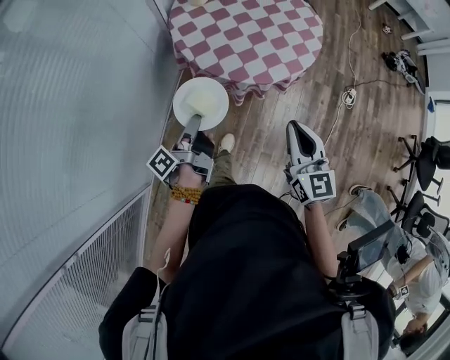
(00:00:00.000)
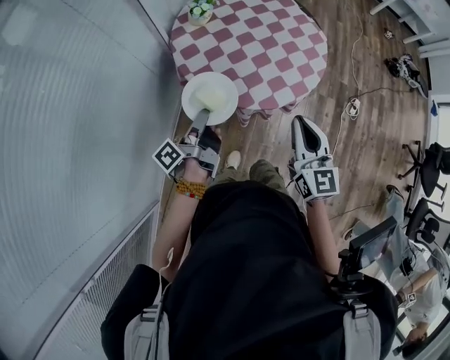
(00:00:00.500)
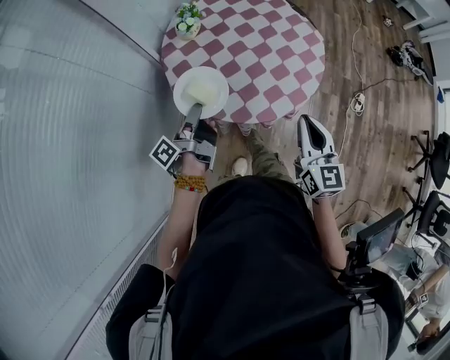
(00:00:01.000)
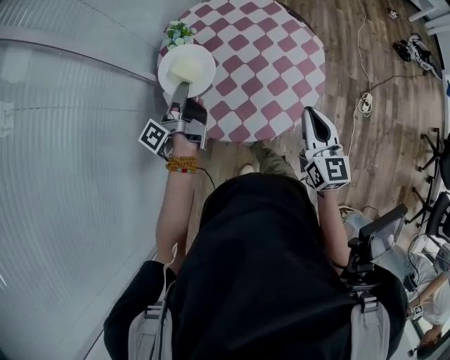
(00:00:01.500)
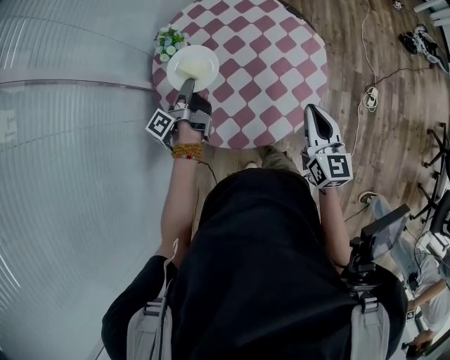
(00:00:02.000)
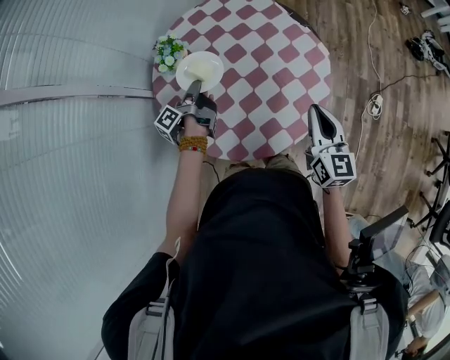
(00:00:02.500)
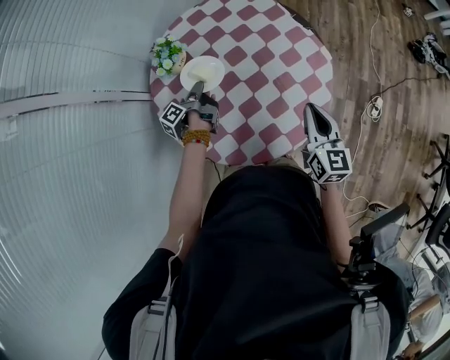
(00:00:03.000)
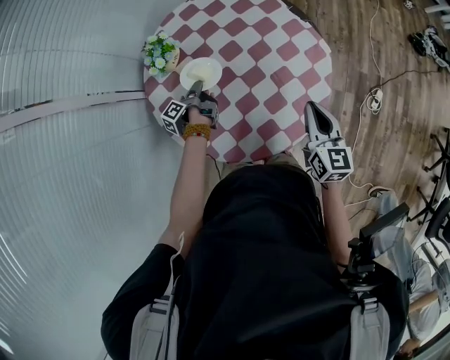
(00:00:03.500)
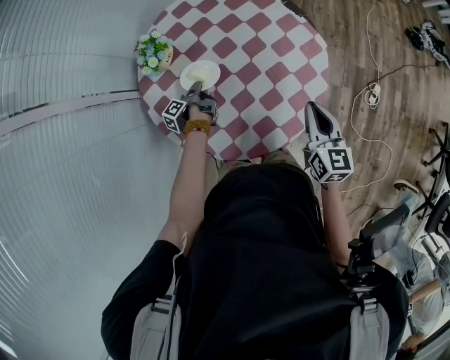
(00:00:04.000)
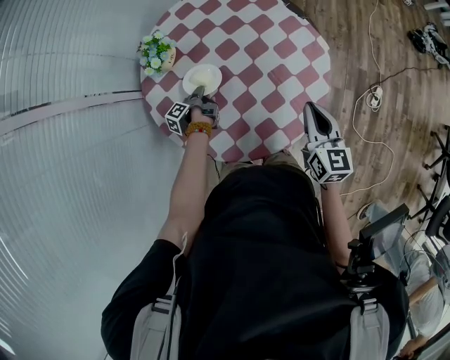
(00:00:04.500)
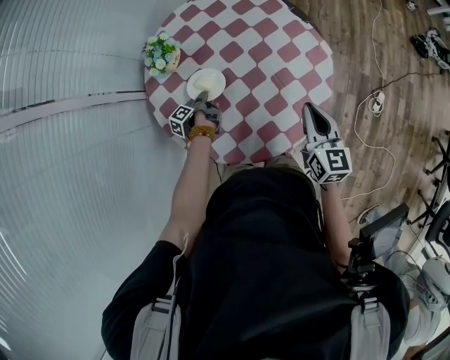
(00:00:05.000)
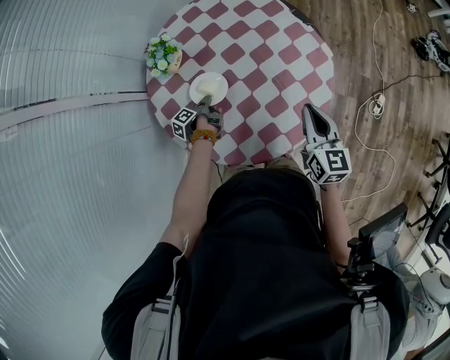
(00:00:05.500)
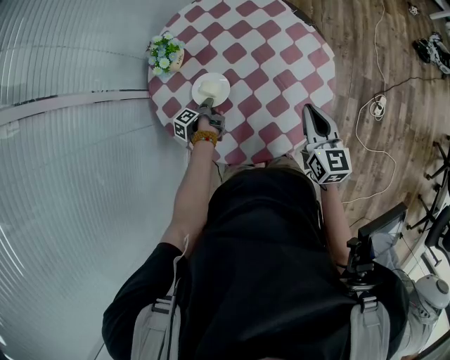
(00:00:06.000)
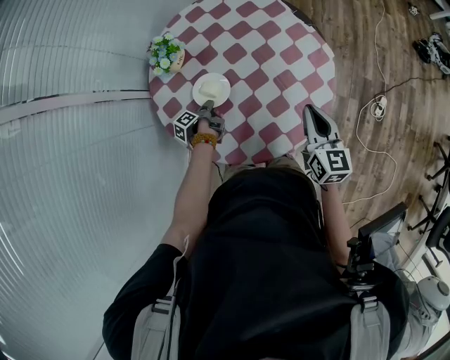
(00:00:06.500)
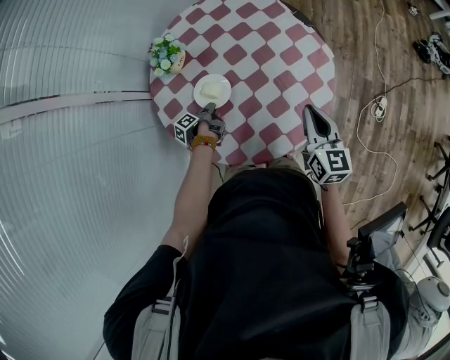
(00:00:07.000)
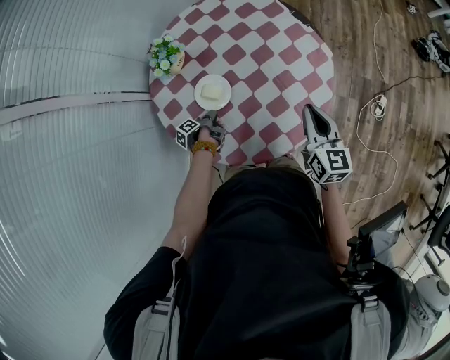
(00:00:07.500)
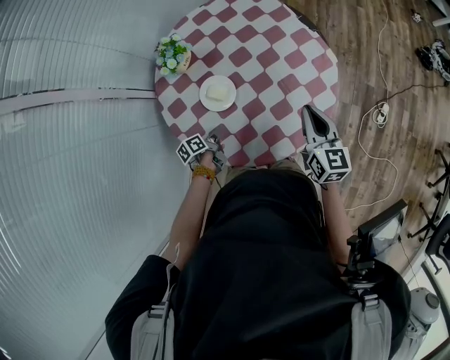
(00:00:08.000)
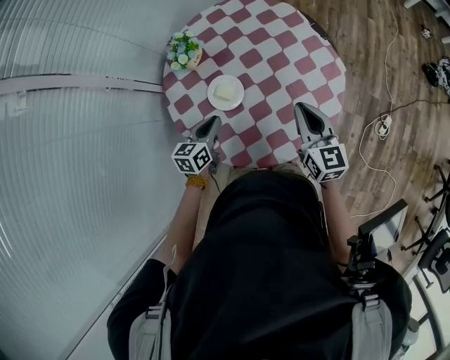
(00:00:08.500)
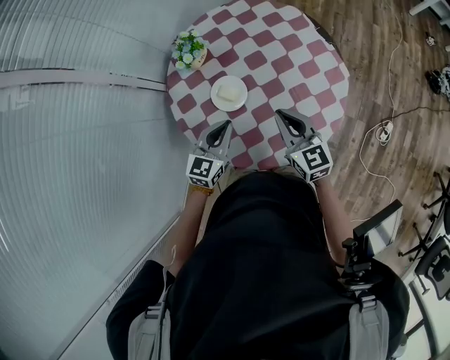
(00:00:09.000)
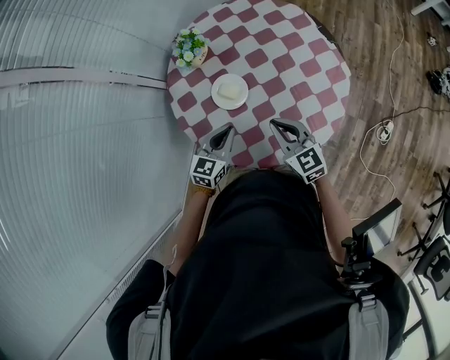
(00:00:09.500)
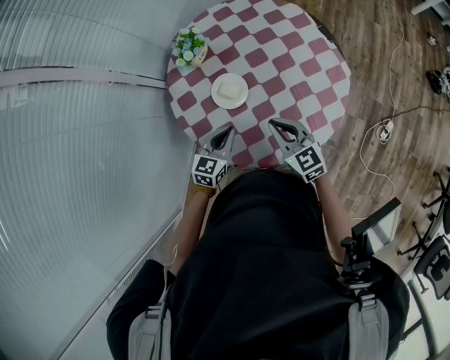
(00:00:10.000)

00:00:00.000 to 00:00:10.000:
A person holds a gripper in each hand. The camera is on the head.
00:00:00.000 to 00:00:02.000: The right gripper reaches some 10 cm upward, then returns.
00:00:02.000 to 00:00:04.000: The right gripper changes place by about 15 cm.
00:00:08.000 to 00:00:10.000: The right gripper changes place by approximately 15 cm, and turns by some 40 degrees.

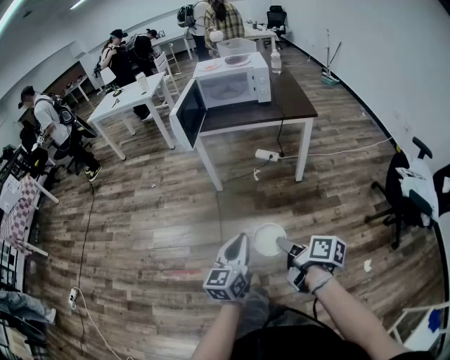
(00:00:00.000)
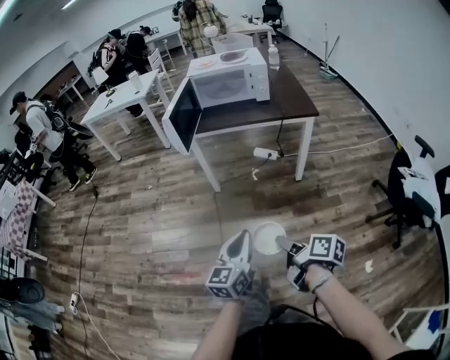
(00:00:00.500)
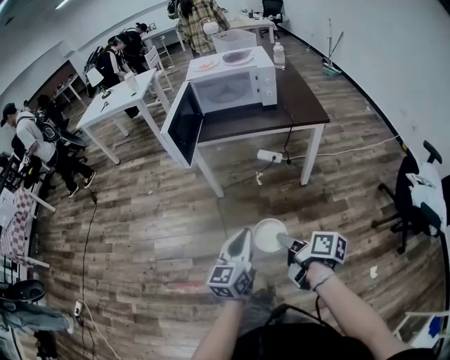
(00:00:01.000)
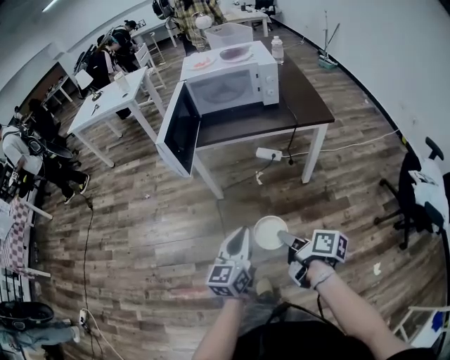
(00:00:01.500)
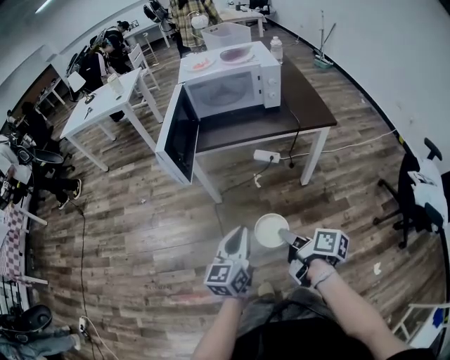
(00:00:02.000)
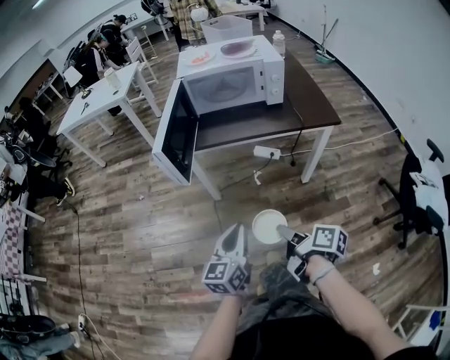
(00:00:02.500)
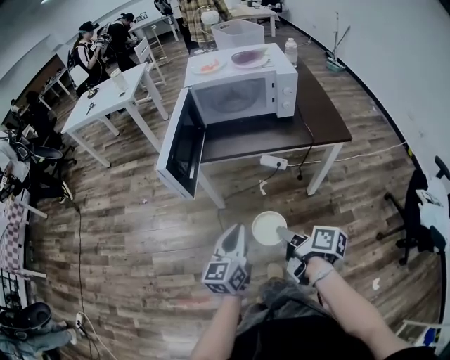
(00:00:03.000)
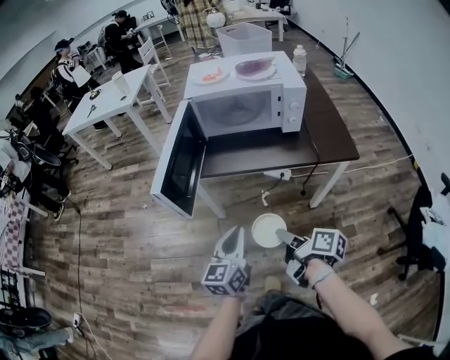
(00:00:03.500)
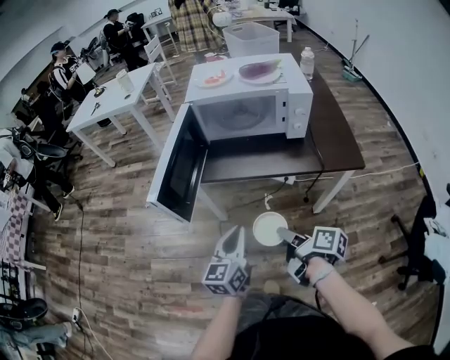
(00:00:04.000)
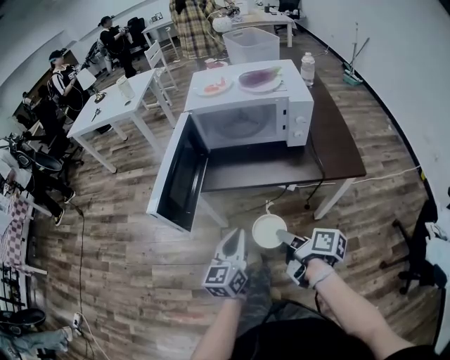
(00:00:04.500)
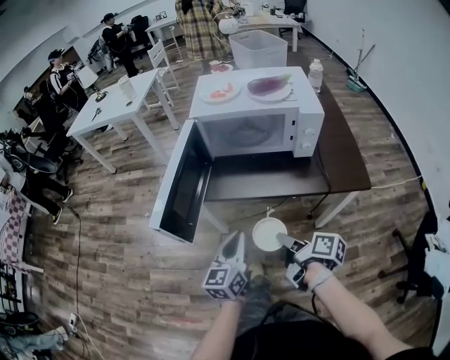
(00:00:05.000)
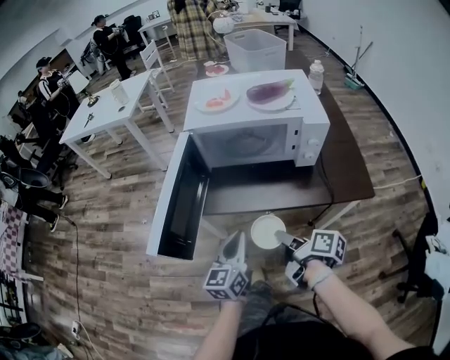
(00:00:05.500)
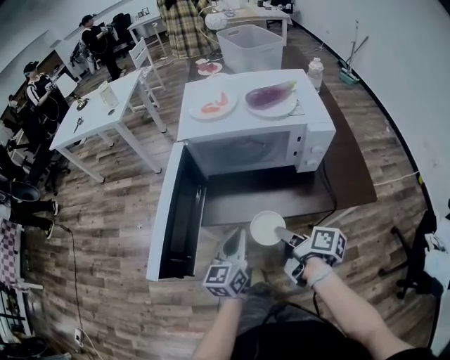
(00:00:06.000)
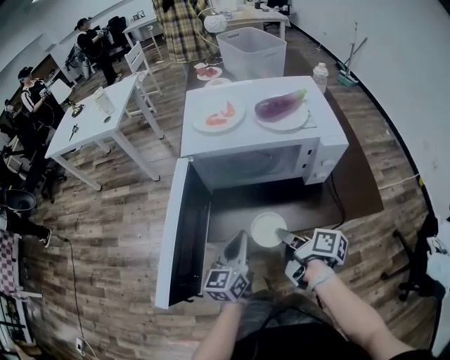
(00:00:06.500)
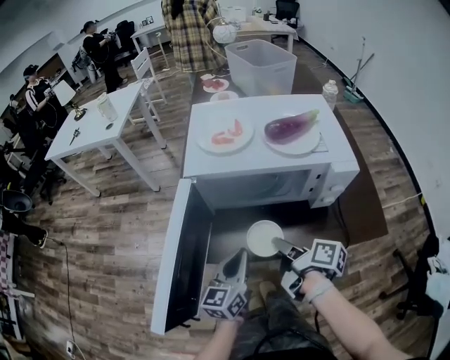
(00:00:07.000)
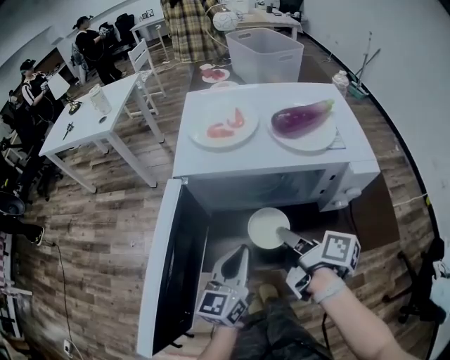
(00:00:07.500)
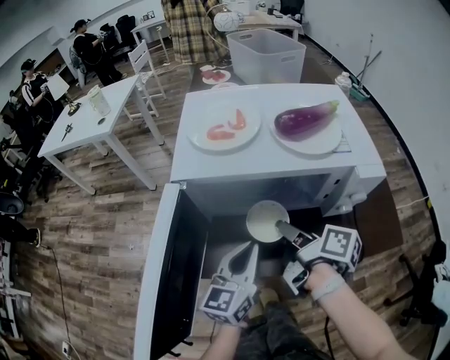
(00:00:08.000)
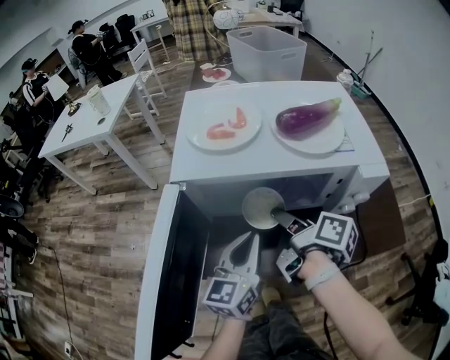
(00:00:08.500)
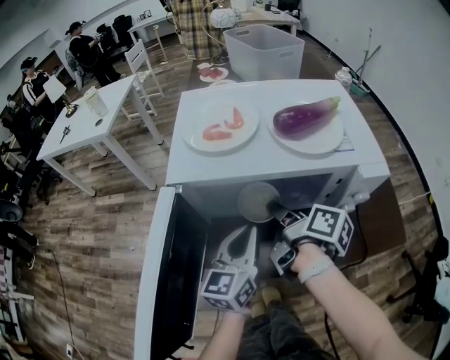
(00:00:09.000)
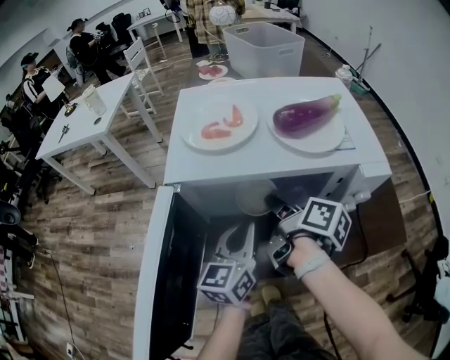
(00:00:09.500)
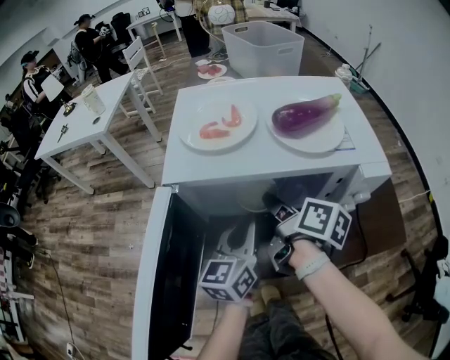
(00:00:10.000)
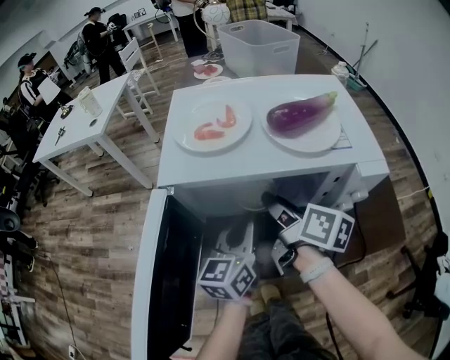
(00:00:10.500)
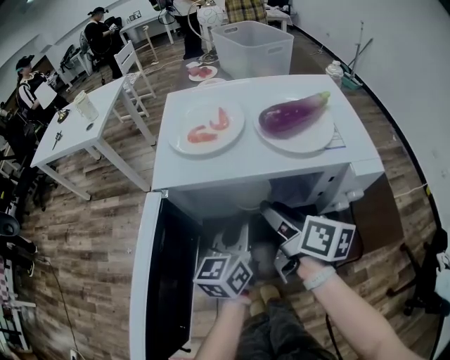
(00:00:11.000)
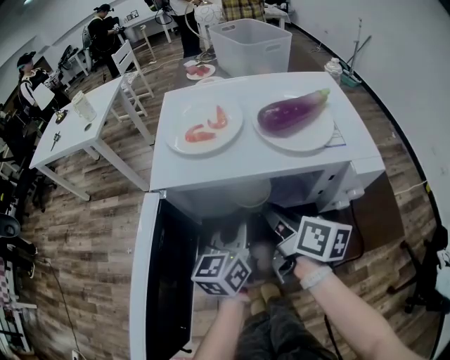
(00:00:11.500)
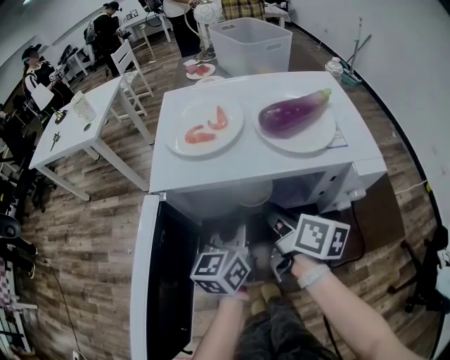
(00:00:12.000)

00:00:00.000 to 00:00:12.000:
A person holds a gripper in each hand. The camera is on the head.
00:00:00.000 to 00:00:02.000: The two grippers go roughly 30 cm forward.
00:00:02.000 to 00:00:04.000: The grippers both shift forward by roughly 20 cm.
00:00:04.000 to 00:00:06.000: Both grippers travel together forward, some 20 cm.
00:00:06.000 to 00:00:08.000: Both grippers move forward, roughly 15 cm.
00:00:08.000 to 00:00:10.000: Both grippers travel together forward, some 5 cm.
00:00:10.000 to 00:00:12.000: The right gripper closes.

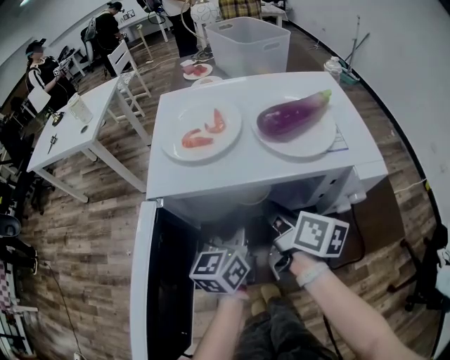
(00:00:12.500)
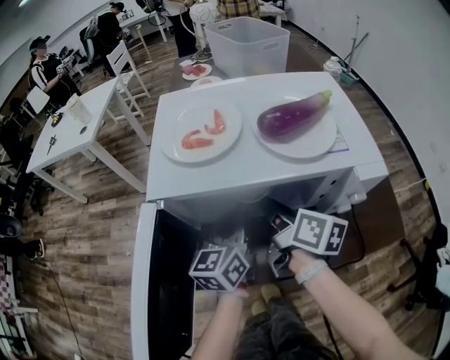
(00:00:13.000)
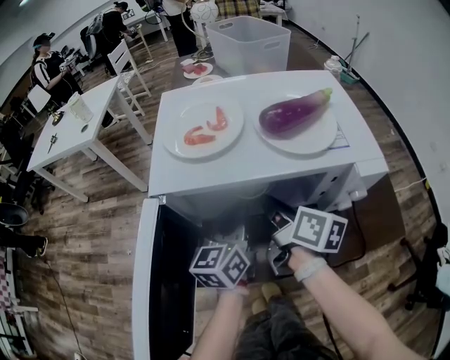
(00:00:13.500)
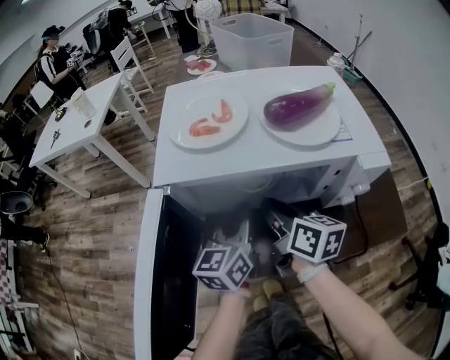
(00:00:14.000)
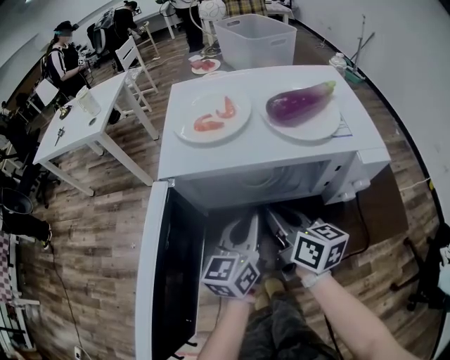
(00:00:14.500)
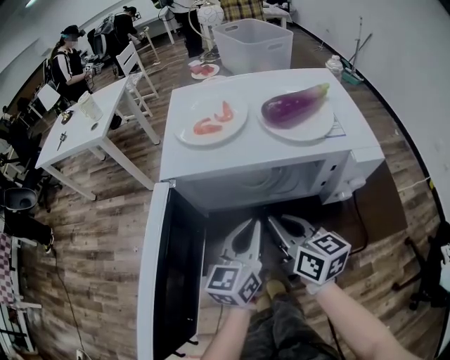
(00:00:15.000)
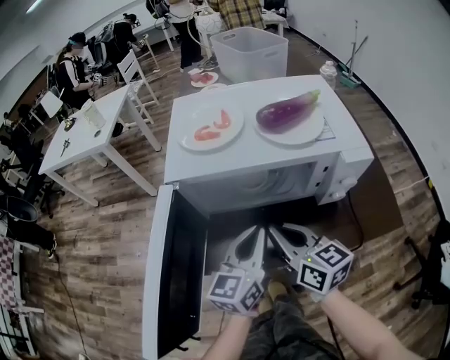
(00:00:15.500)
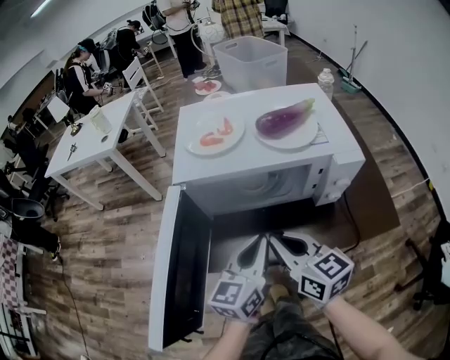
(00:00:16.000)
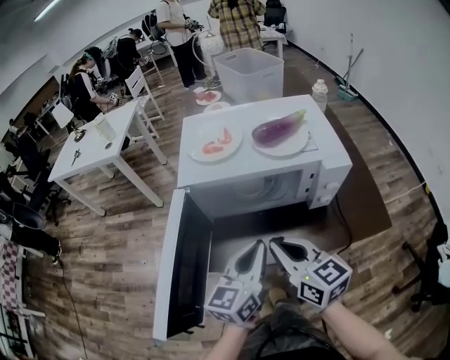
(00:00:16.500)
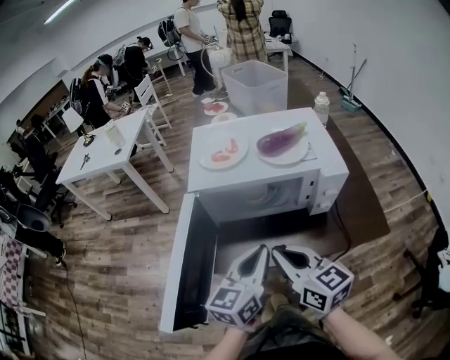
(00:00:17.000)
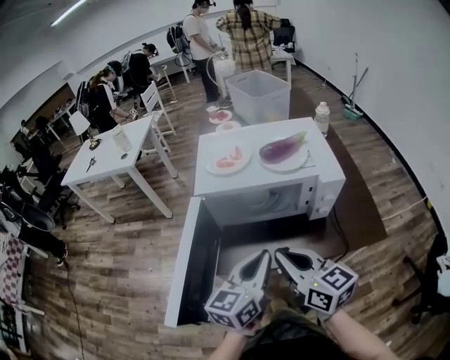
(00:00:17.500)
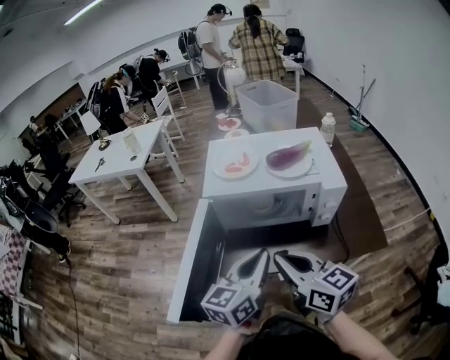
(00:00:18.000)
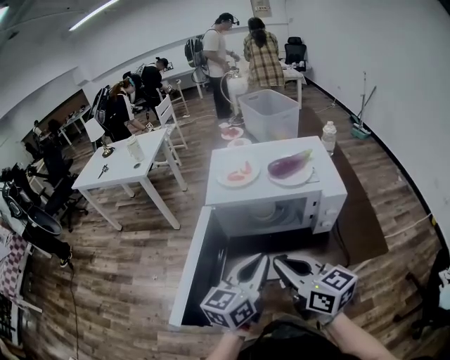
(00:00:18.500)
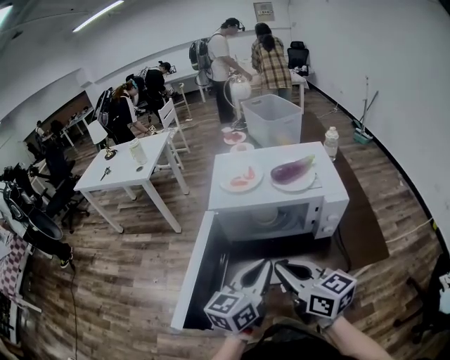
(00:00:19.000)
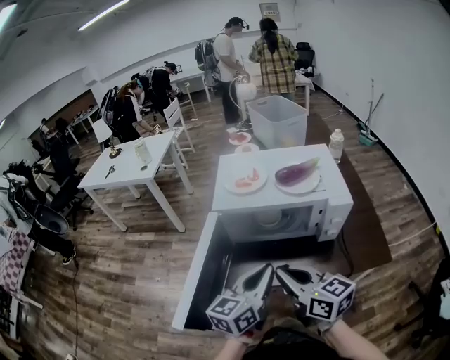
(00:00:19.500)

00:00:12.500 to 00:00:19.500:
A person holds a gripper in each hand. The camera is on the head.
00:00:12.500 to 00:00:14.500: The grippers make only small movements.
00:00:14.500 to 00:00:16.000: The right gripper goes about 10 cm backward and upward. The left gripper shifts approximately 10 cm backward.
00:00:16.000 to 00:00:17.500: Both grippers travel together upward and backward, approximately 10 cm.
00:00:17.500 to 00:00:19.500: The grippers move only a little.
